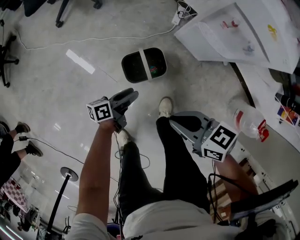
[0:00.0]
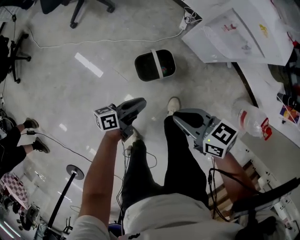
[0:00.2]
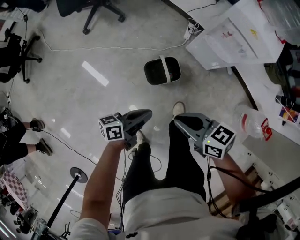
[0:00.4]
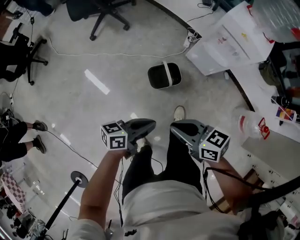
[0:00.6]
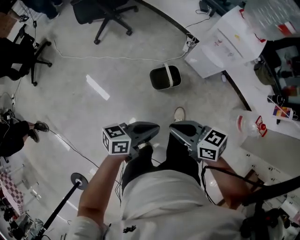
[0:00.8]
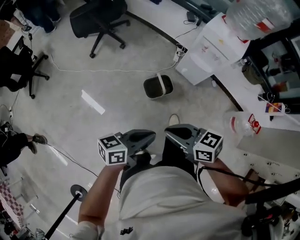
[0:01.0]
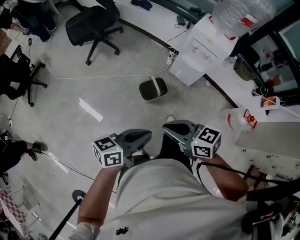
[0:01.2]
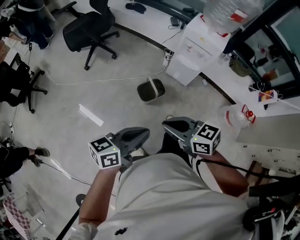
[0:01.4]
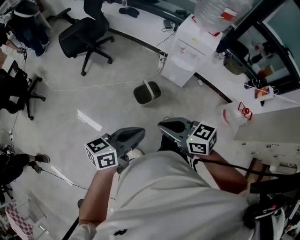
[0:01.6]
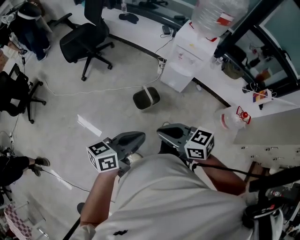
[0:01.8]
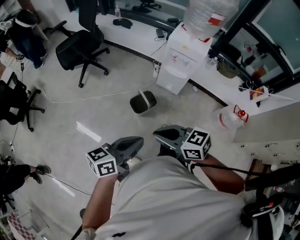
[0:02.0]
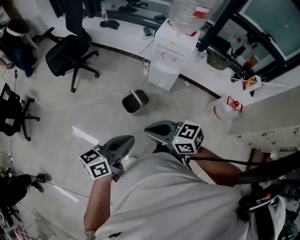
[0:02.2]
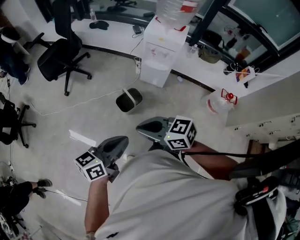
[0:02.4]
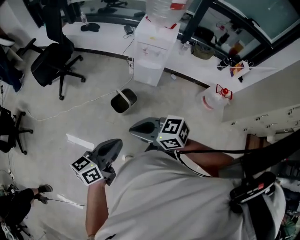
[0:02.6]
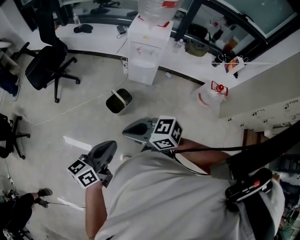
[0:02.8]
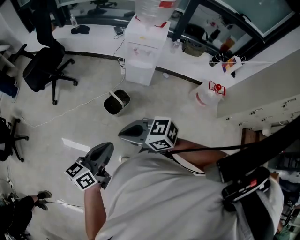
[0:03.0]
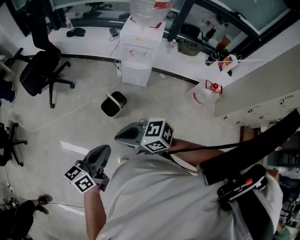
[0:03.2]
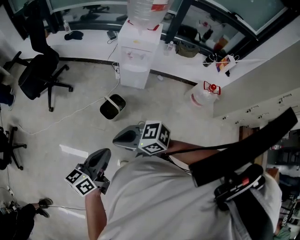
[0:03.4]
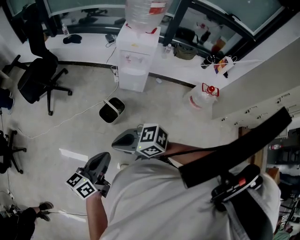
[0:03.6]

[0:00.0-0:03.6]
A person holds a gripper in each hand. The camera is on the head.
0:00.0 to 0:01.8: The right gripper travels upward by approximately 30 cm, and changes its angle by about 20 degrees. The left gripper goes roughly 50 cm upward, changes its angle by about 40 degrees, and closes.
0:01.8 to 0:03.6: There are only small adjustments of the grippers.

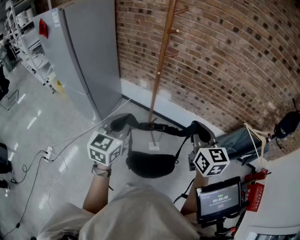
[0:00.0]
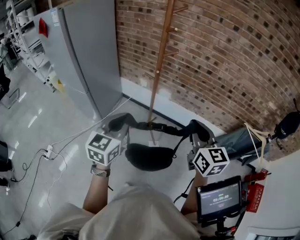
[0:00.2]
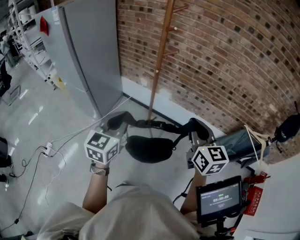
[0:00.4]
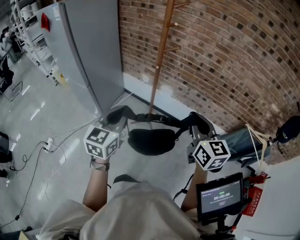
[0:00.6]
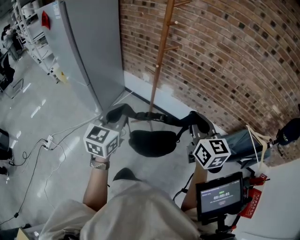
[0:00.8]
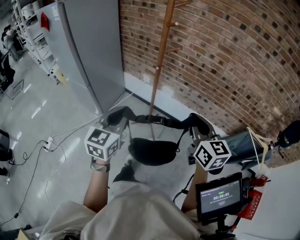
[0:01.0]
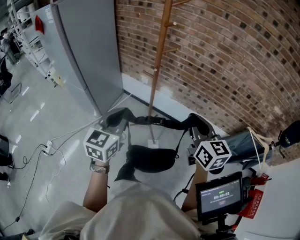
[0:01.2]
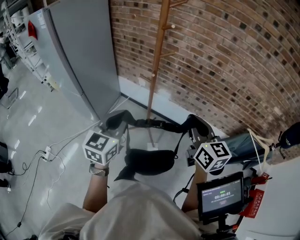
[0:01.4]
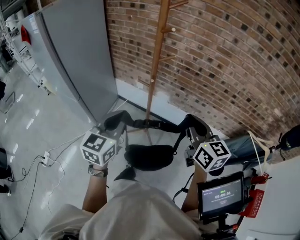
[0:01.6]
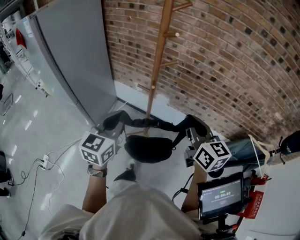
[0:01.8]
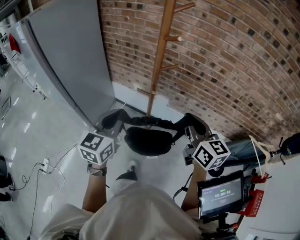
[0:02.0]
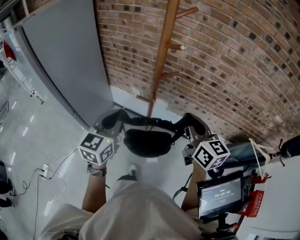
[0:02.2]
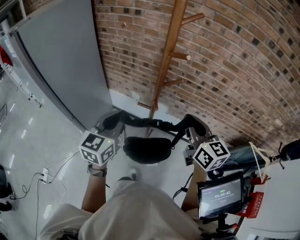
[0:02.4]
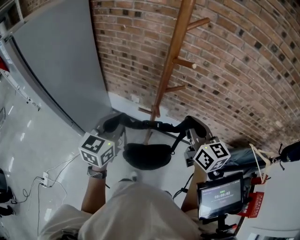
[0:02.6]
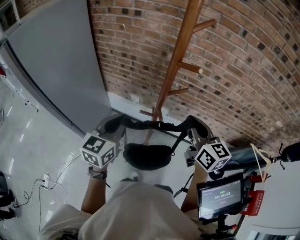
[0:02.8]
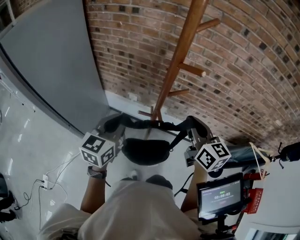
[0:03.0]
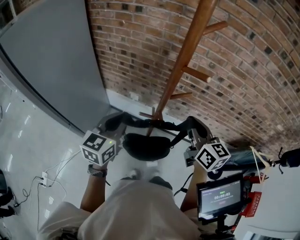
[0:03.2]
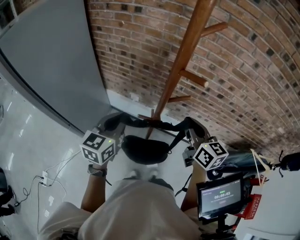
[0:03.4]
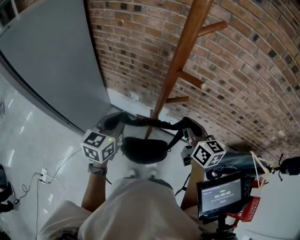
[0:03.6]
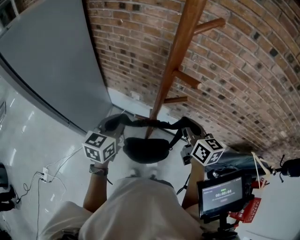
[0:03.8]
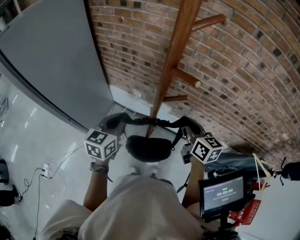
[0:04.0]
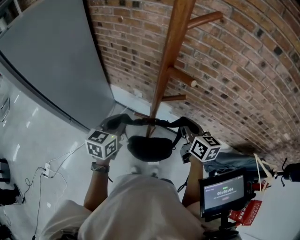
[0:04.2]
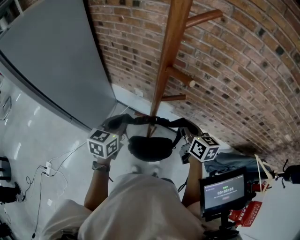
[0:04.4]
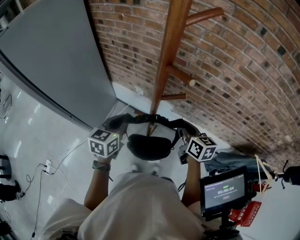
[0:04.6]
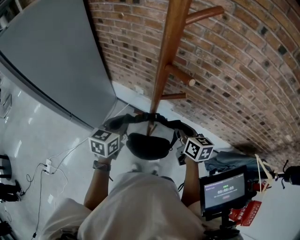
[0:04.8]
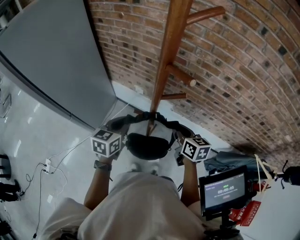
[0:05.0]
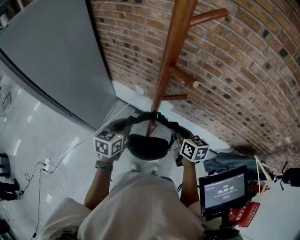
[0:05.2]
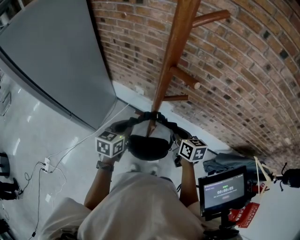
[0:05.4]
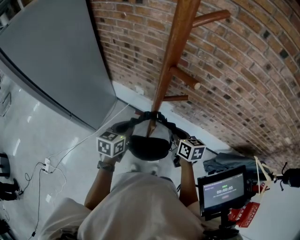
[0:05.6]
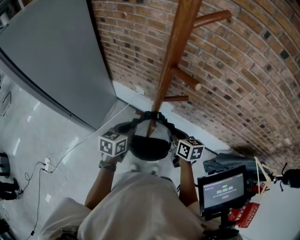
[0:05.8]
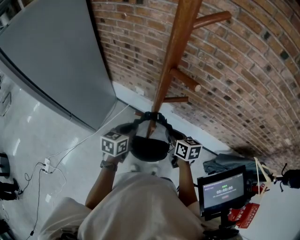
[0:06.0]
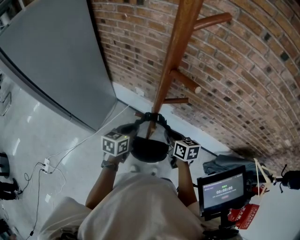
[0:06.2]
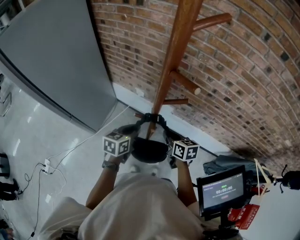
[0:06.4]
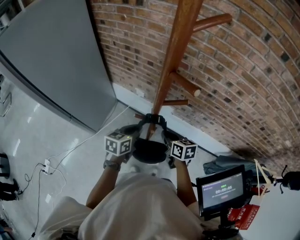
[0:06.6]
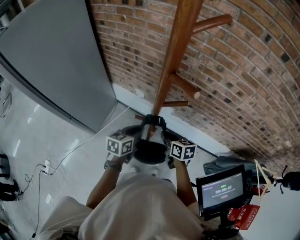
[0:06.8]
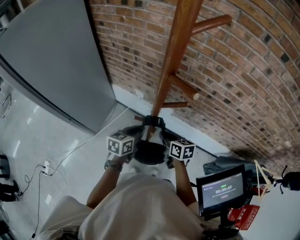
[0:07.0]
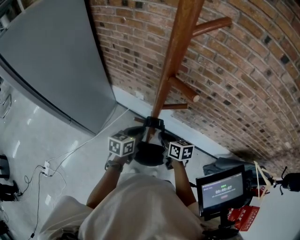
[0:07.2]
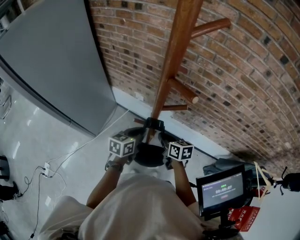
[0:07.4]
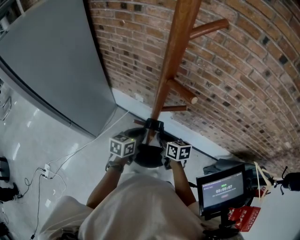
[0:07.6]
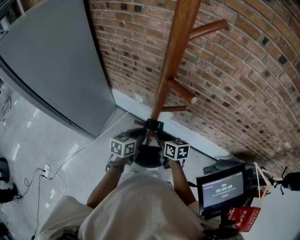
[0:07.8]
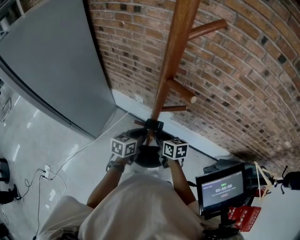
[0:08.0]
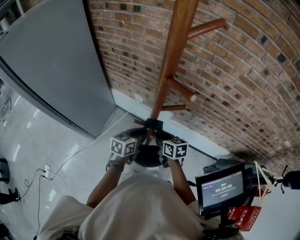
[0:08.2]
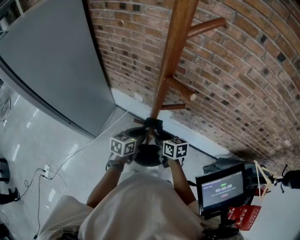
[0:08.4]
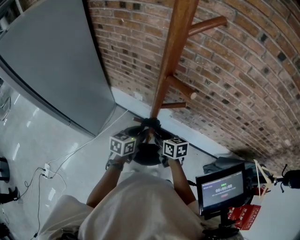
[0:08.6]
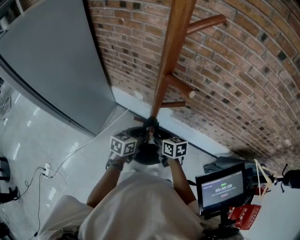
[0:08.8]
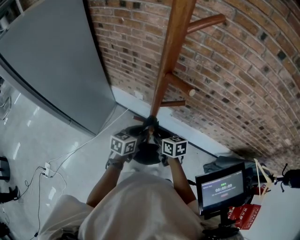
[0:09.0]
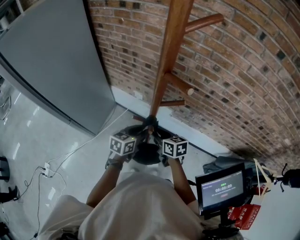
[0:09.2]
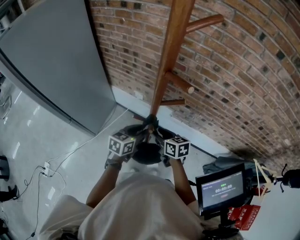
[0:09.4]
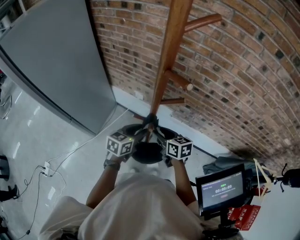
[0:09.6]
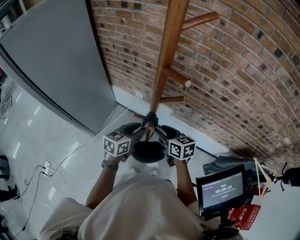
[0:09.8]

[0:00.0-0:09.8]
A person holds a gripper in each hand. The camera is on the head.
0:00.0 to 0:01.4: The two grippers go some 10 cm forward.
0:01.4 to 0:02.8: The grippers both shift forward by some 20 cm.
0:02.8 to 0:04.2: Both grippers move downward and forward, about 10 cm.
0:04.2 to 0:05.6: Both grippers move downward, about 10 cm.
0:05.6 to 0:07.0: The right gripper shifts by roughly 5 cm; the left gripper changes place by some 5 cm.
0:07.0 to 0:08.4: The right gripper opens its fingers.
0:08.4 to 0:09.8: The left gripper shifts by some 5 cm; the right gripper goes approximately 5 cm upward.

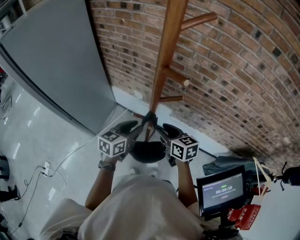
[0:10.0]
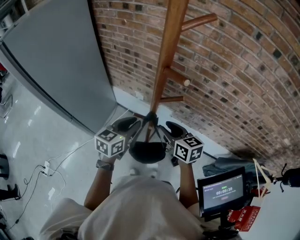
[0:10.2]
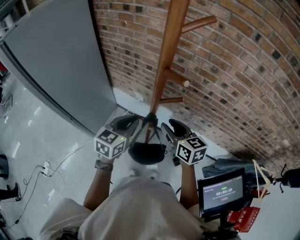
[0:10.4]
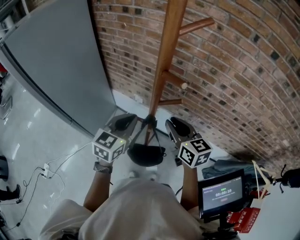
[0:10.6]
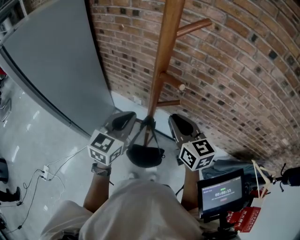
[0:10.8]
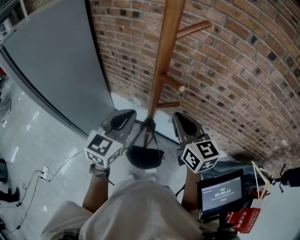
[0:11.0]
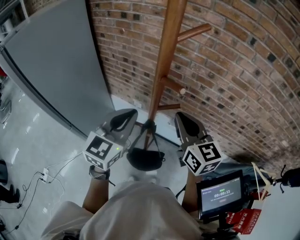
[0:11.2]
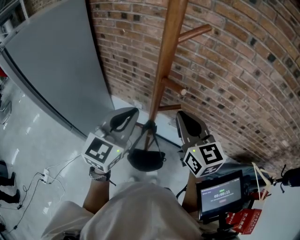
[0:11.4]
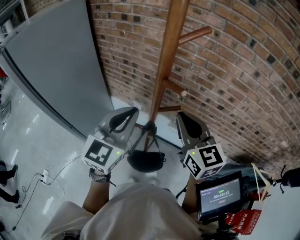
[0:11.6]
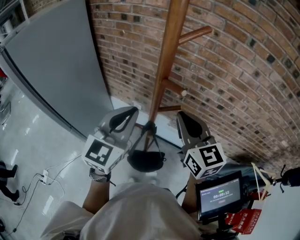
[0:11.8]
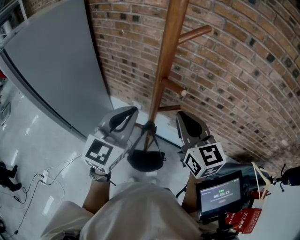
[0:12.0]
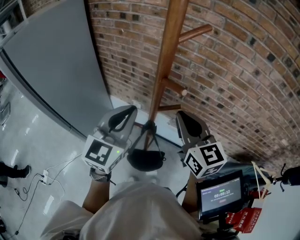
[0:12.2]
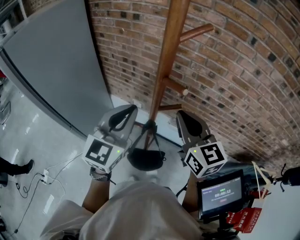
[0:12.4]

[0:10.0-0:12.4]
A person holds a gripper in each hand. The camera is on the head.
0:10.0 to 0:11.2: The grippers both shift upward by some 20 cm. The left gripper changes its angle by some 30 degrees, and closes its fingers. Meanwhile the right gripper changes its angle by roughly 30 degrees, and closes its fingers.
0:11.2 to 0:12.4: The grippers make only small movements.

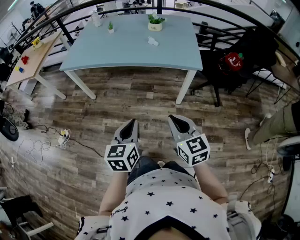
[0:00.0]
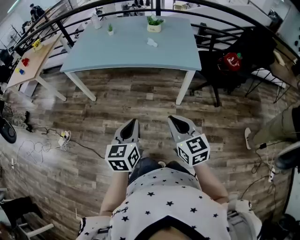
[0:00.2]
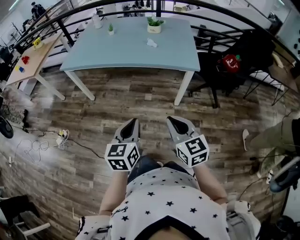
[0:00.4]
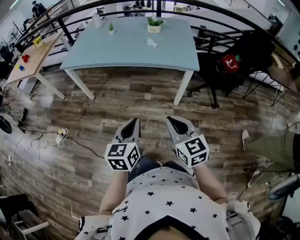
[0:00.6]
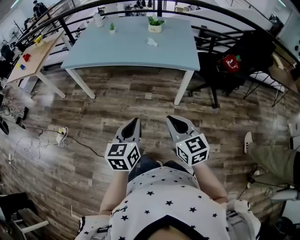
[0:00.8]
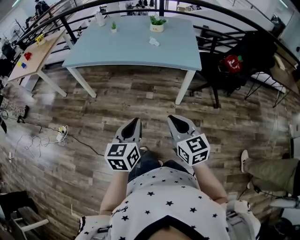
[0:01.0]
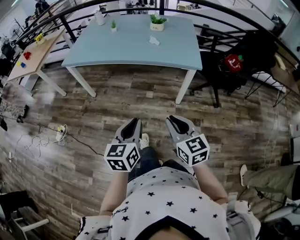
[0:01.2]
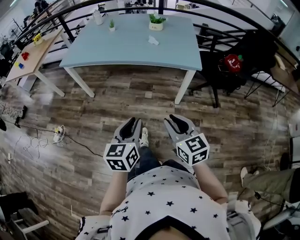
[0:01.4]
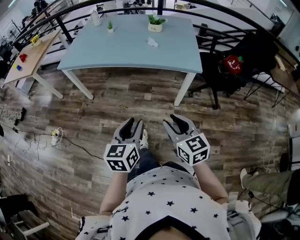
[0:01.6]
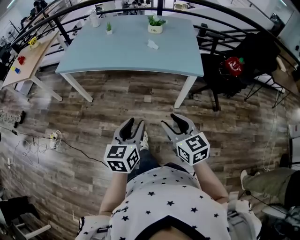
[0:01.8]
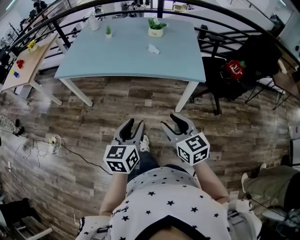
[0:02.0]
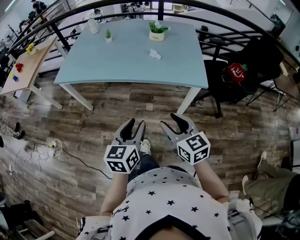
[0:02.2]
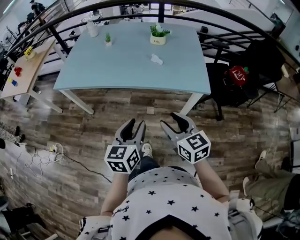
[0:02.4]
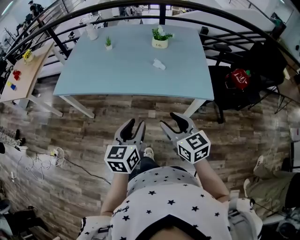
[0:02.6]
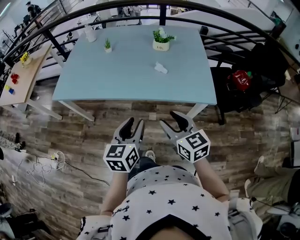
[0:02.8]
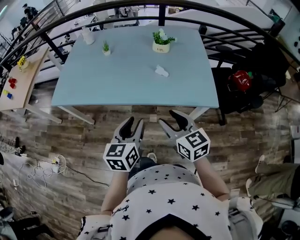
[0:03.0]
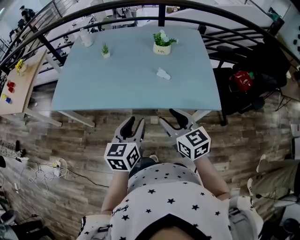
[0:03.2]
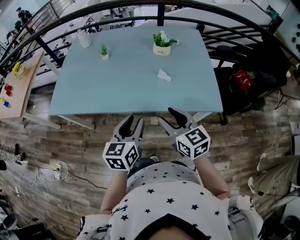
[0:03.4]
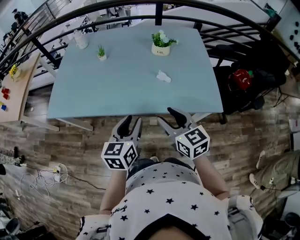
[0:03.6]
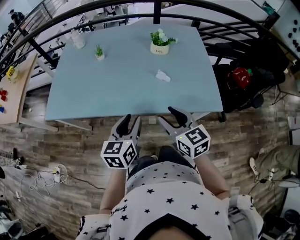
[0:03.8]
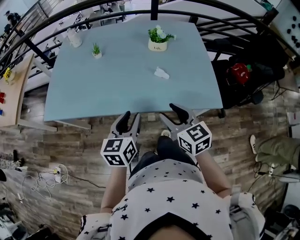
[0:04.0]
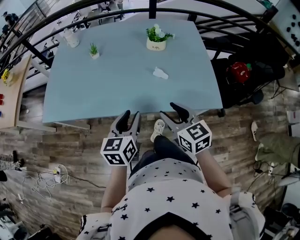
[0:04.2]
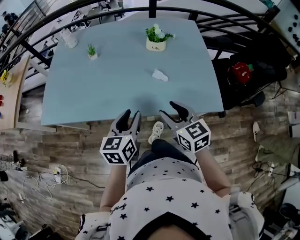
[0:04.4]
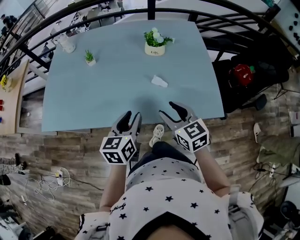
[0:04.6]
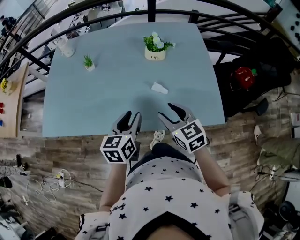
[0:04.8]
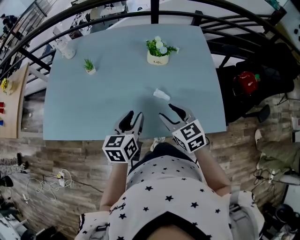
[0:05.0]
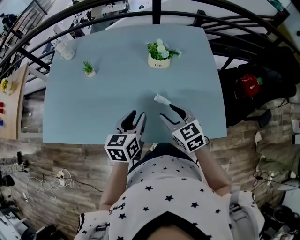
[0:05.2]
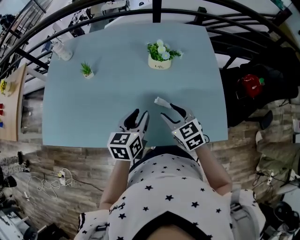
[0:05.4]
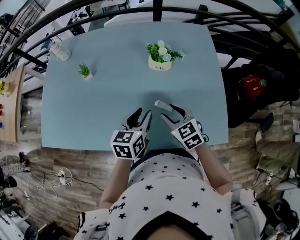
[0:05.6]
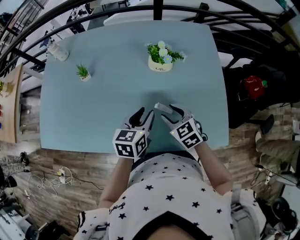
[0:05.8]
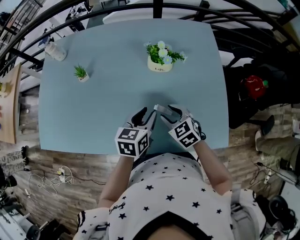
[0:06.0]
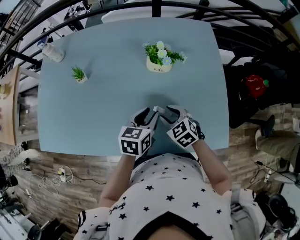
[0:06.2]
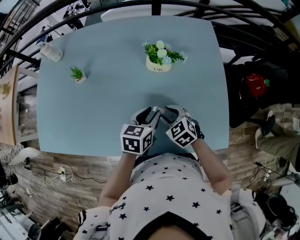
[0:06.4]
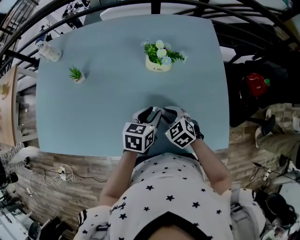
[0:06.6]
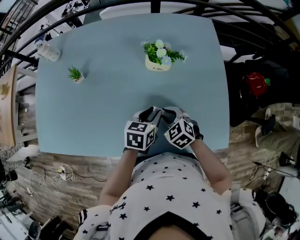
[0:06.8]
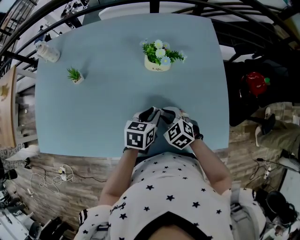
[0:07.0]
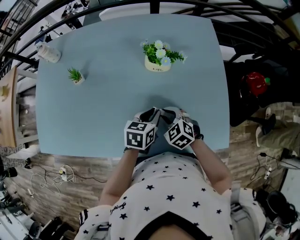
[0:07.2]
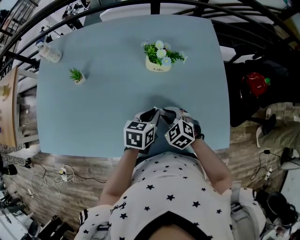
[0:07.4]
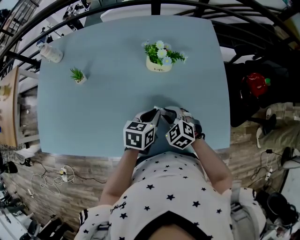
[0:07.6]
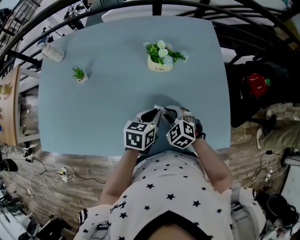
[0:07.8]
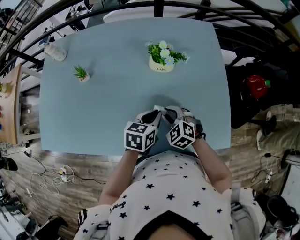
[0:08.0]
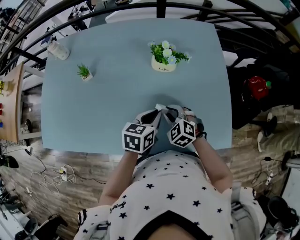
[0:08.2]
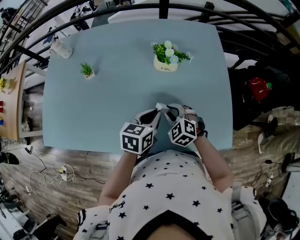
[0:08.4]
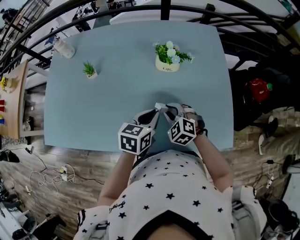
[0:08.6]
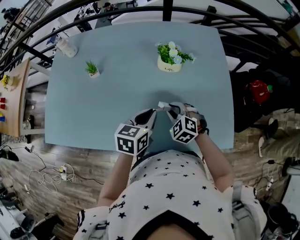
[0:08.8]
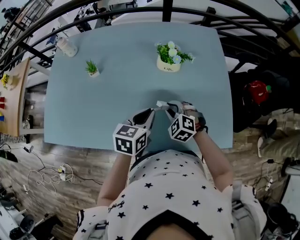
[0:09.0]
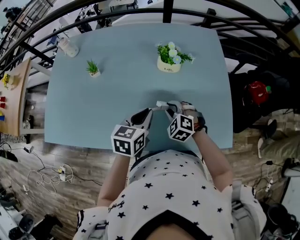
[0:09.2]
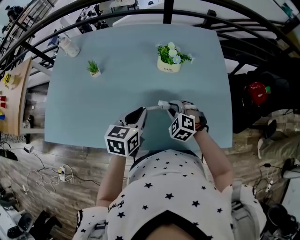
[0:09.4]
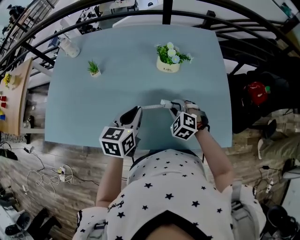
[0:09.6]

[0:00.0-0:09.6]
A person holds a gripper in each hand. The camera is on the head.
0:00.0 to 0:01.6: The right gripper opens up; the left gripper opens up.
0:01.6 to 0:03.2: The two grippers go roughly 35 cm forward.
0:03.2 to 0:04.8: The grippers both shift forward by some 20 cm.
0:04.8 to 0:06.4: The right gripper goes approximately 20 cm forward and downward, and swivels about 30 degrees. The left gripper is displaced forward, to the right and downward by about 20 cm.
0:06.4 to 0:08.0: The left gripper closes up.
0:08.0 to 0:09.6: The left gripper goes about 15 cm to the left and upward.
